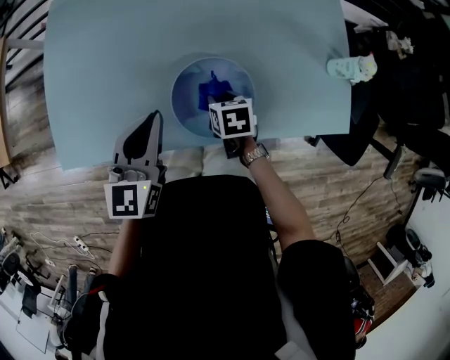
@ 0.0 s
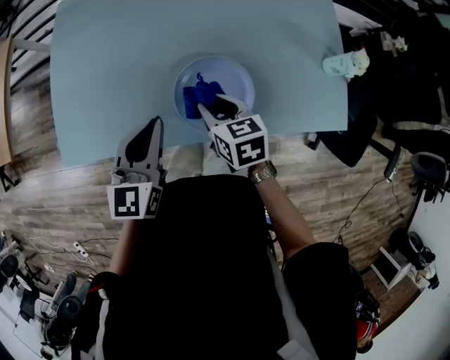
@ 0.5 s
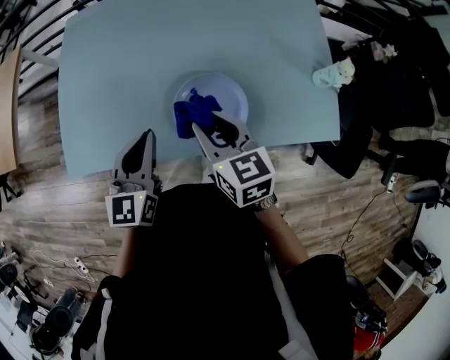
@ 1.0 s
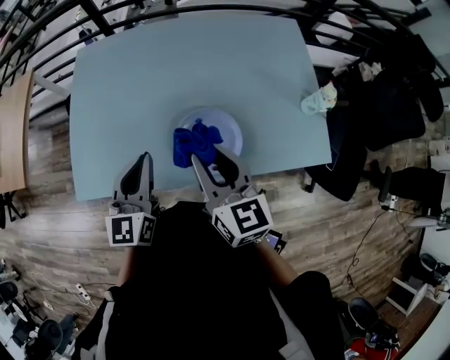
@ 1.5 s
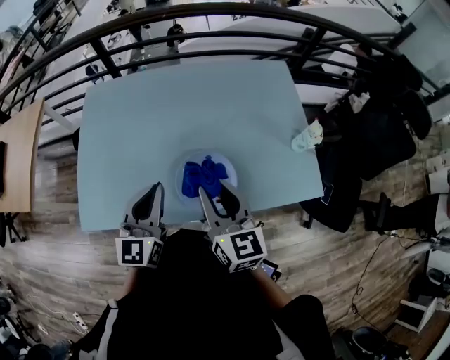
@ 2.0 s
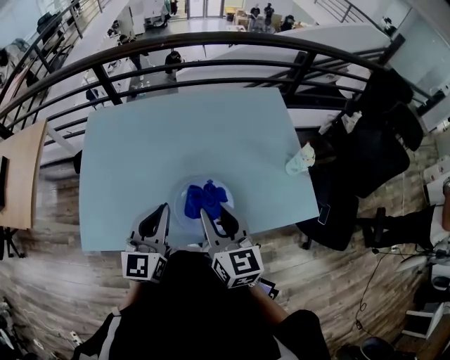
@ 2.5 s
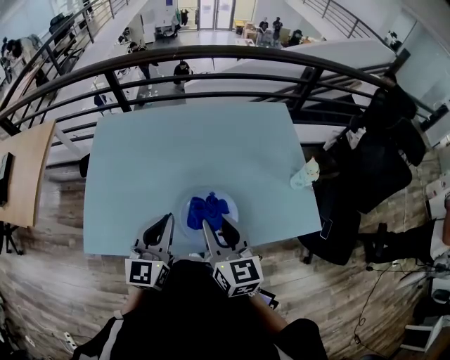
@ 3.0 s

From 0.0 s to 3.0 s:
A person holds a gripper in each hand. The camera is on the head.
From 0.0 s to 1.5 s: The left gripper heads upward, covering approximately 10 cm, while the right gripper is displaced upward by roughly 30 cm, and angles its fingers upward, by roughly 50 degrees.
From 1.5 s to 3.0 s: The left gripper moves roughly 5 cm.

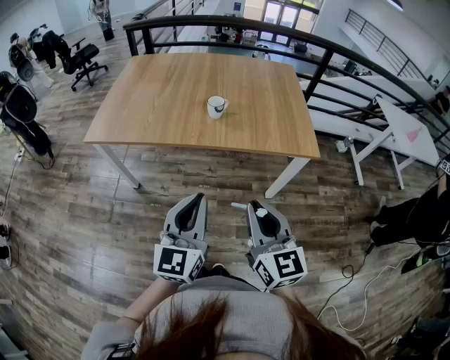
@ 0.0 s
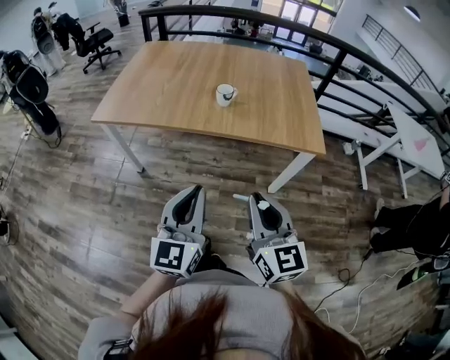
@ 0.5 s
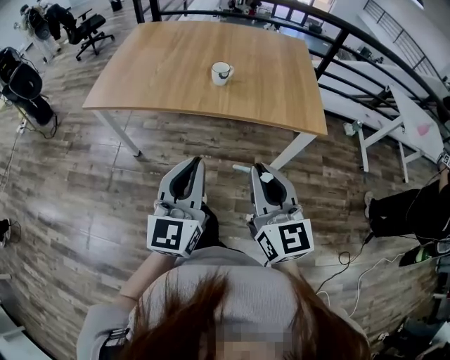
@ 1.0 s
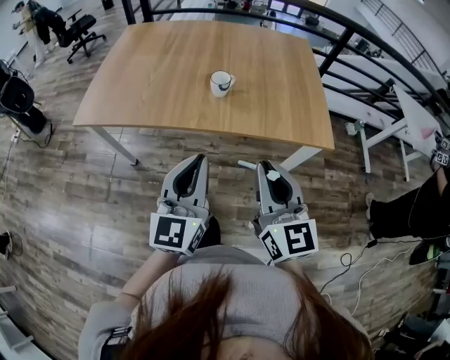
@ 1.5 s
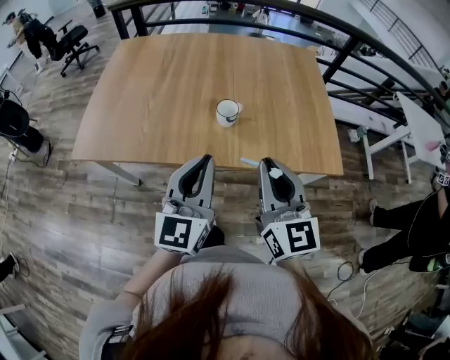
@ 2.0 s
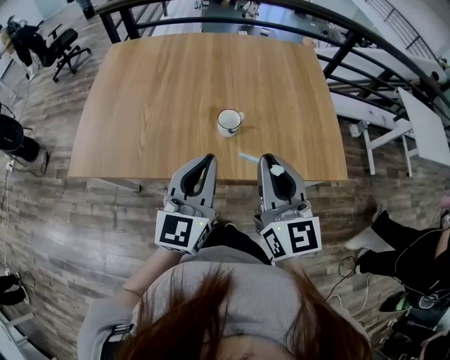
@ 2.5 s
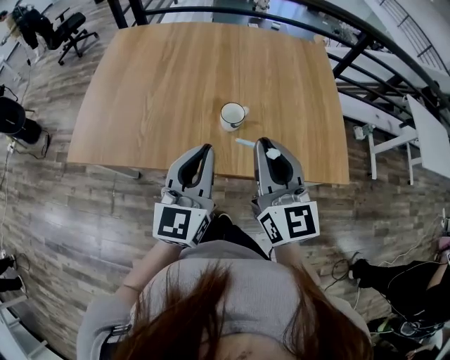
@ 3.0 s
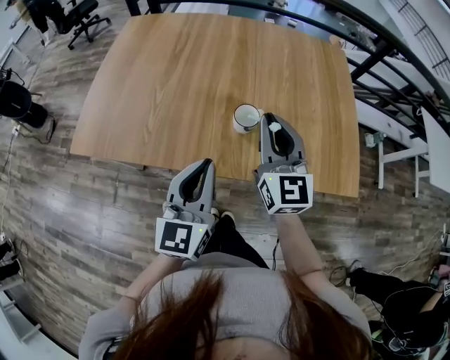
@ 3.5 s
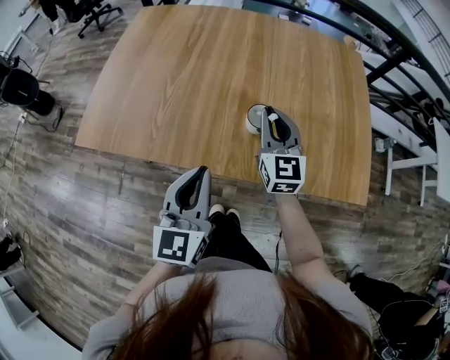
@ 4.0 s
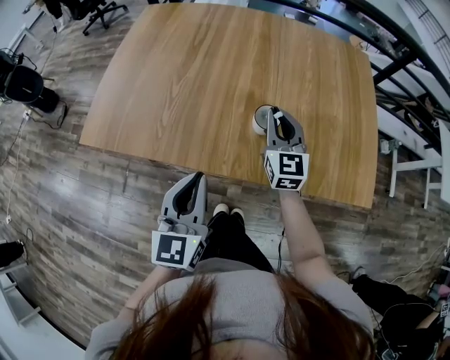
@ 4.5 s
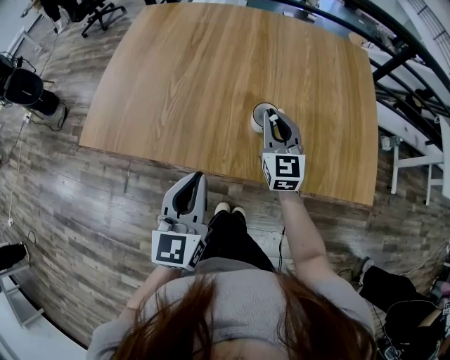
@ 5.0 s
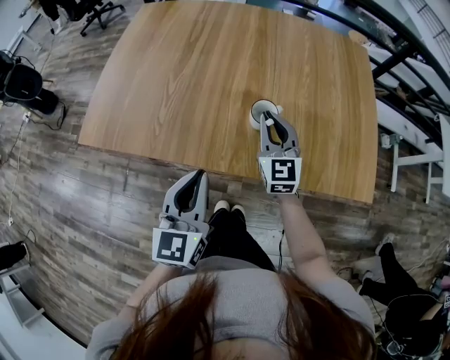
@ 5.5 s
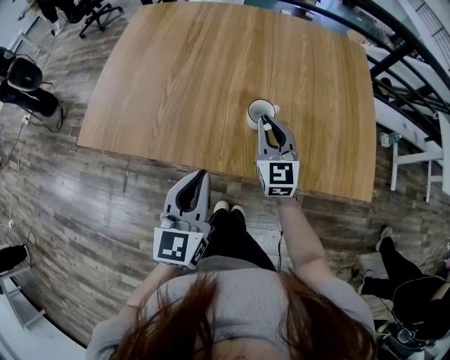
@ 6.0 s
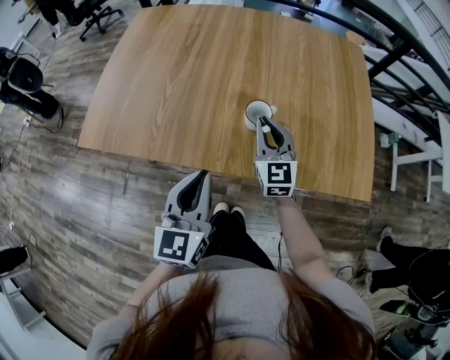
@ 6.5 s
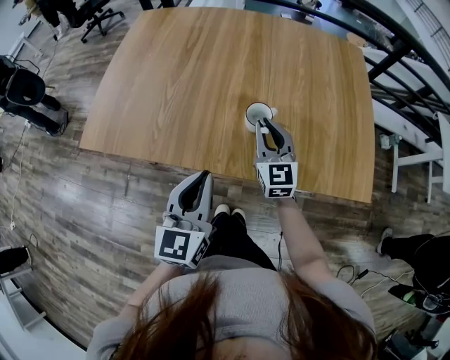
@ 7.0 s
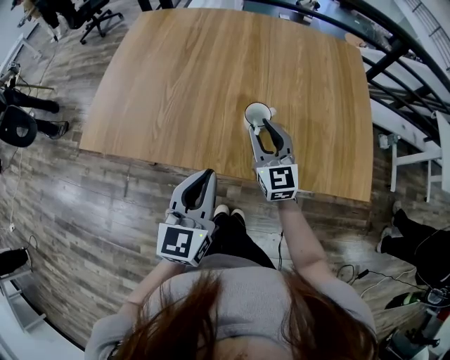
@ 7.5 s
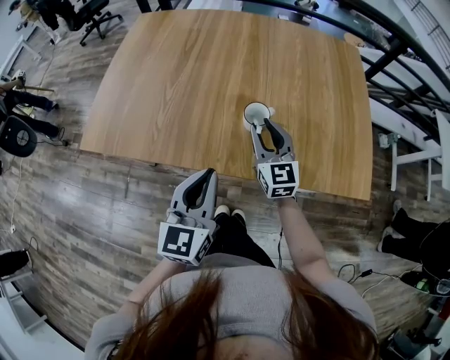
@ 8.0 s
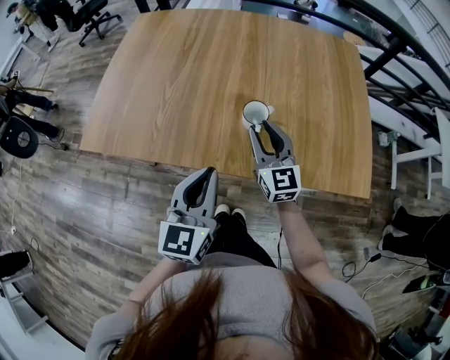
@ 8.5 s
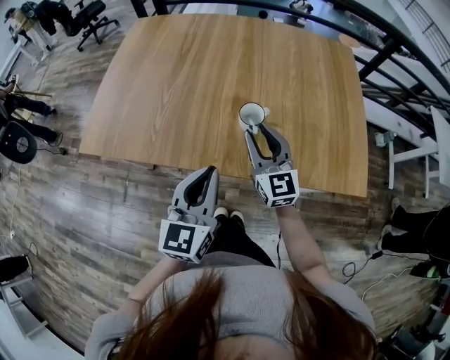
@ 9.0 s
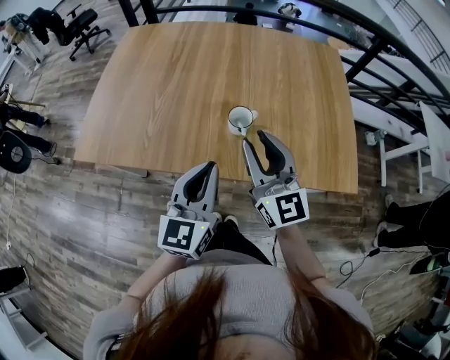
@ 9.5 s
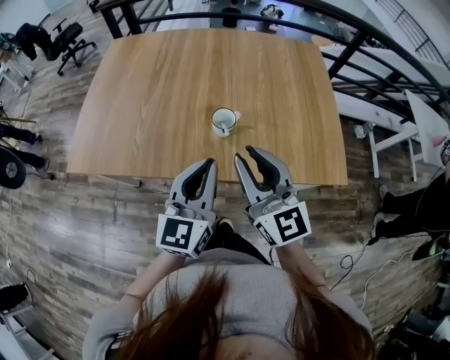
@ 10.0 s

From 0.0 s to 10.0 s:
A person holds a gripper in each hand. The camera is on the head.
From 0.0 s to 2.0 s: The grippers both shift forward by approximately 25 cm.
From 2.0 s to 4.0 s: The right gripper goes roughly 30 cm forward and downward. The left gripper is displaced forward, downward and to the left by about 10 cm.
From 4.0 s to 6.0 s: The right gripper moves approximately 5 cm.
From 6.0 s to 8.0 s: The grippers make only small movements.
From 8.0 s to 10.0 s: The right gripper heads upward and backward, covering roughly 20 cm. The left gripper shifts about 10 cm to the right and upward.

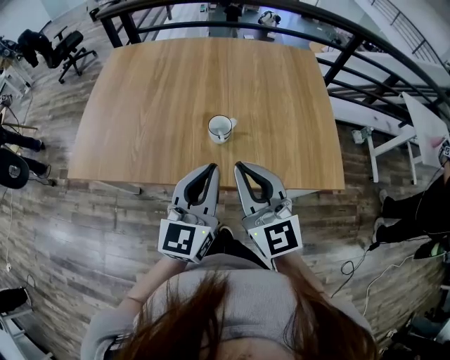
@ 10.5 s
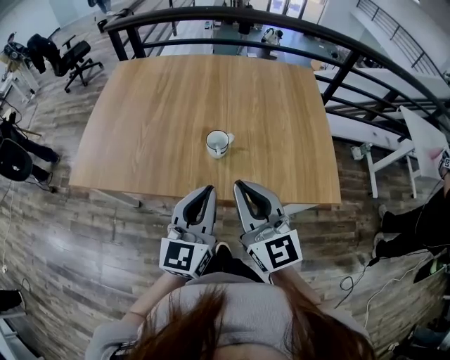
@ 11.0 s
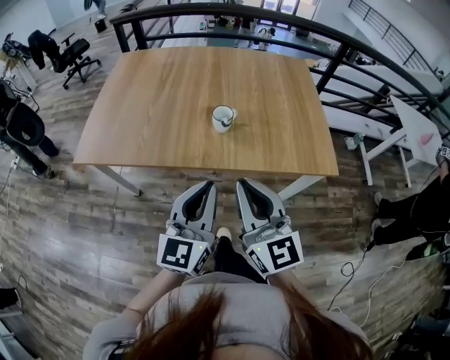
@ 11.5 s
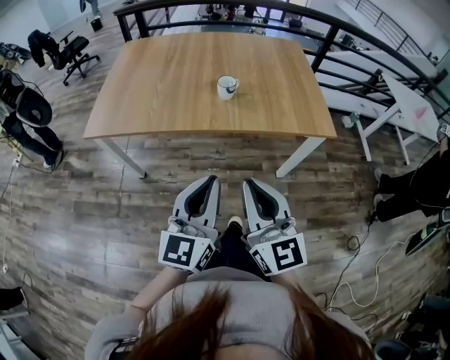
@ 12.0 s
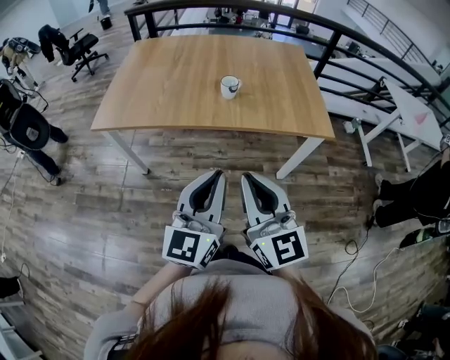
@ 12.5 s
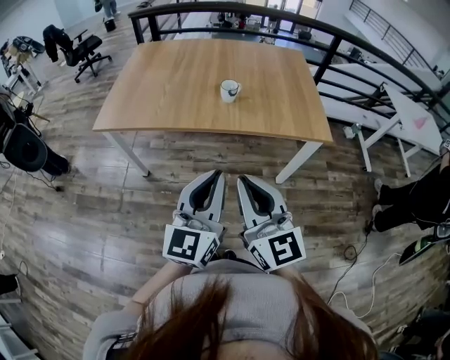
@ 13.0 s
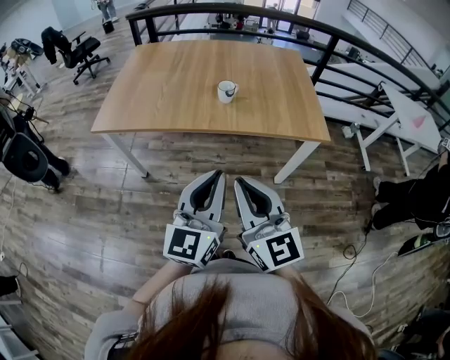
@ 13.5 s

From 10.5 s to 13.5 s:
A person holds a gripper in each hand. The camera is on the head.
From 10.5 s to 12.0 s: Both grippers move backward, approximately 30 cm.
From 12.0 s to 13.5 s: The left gripper changes place by some 5 cm.

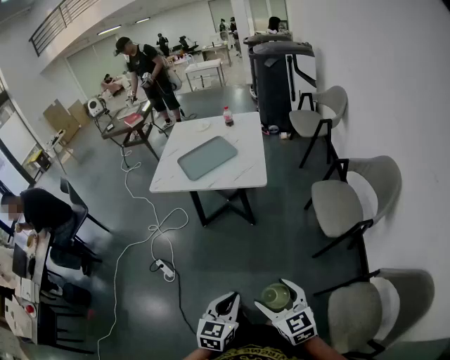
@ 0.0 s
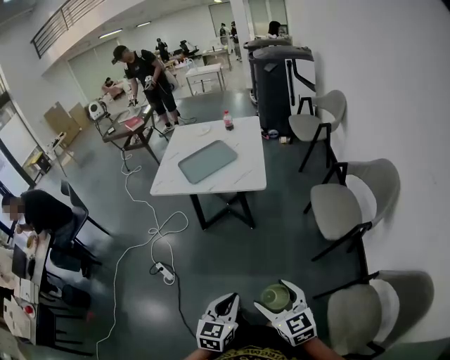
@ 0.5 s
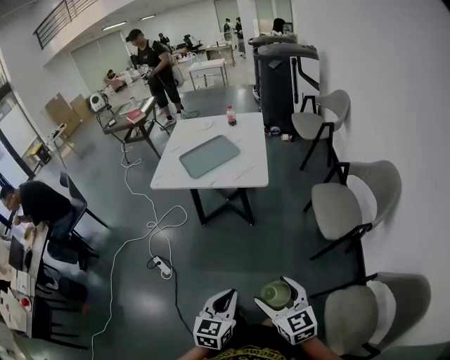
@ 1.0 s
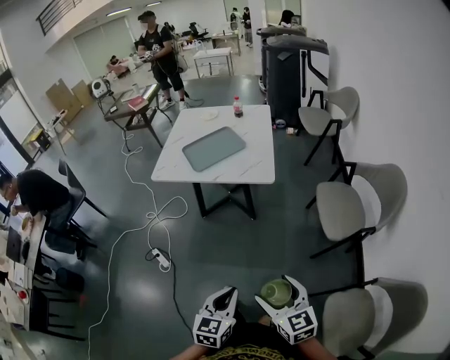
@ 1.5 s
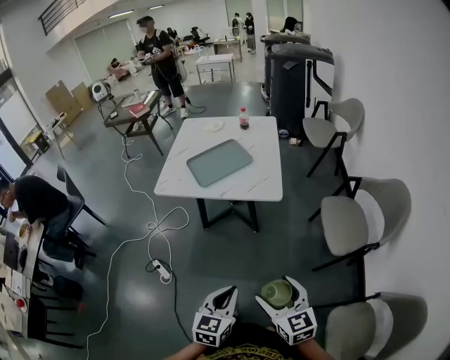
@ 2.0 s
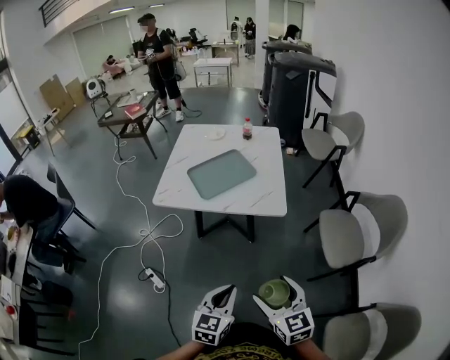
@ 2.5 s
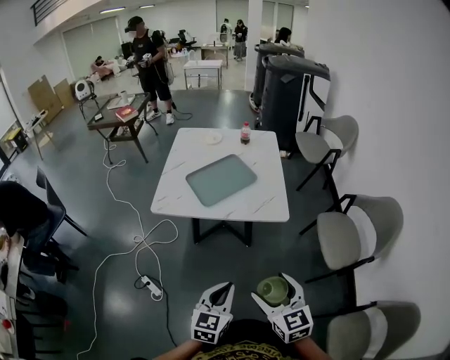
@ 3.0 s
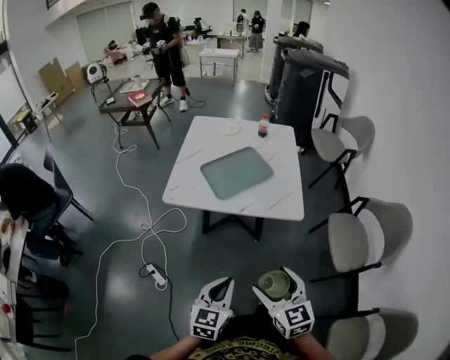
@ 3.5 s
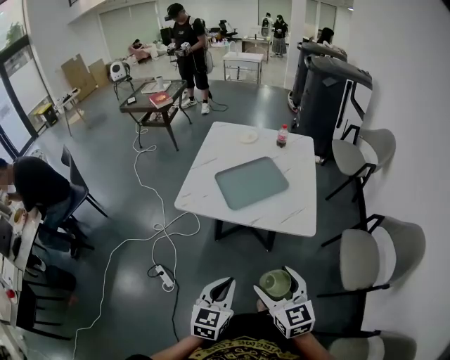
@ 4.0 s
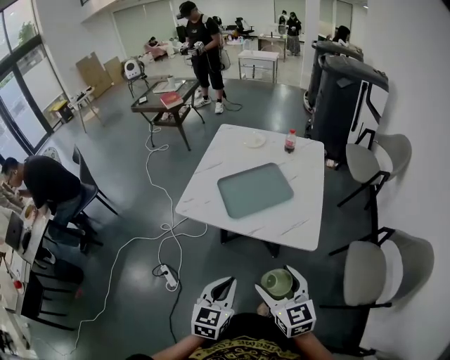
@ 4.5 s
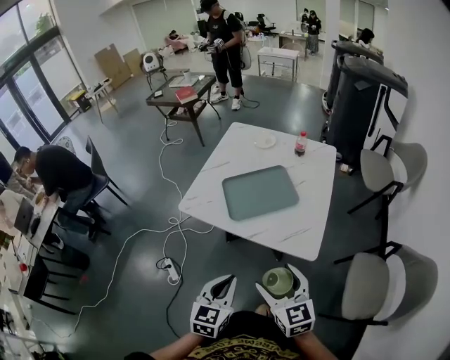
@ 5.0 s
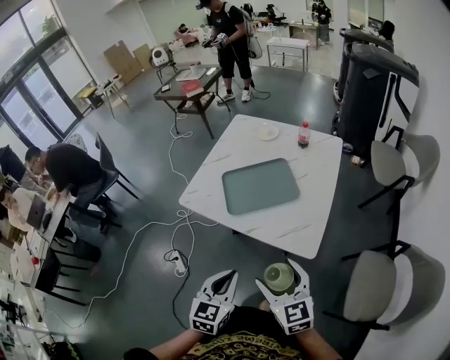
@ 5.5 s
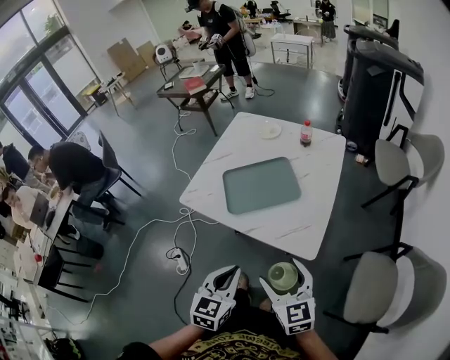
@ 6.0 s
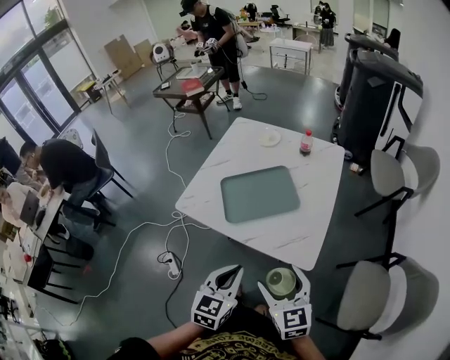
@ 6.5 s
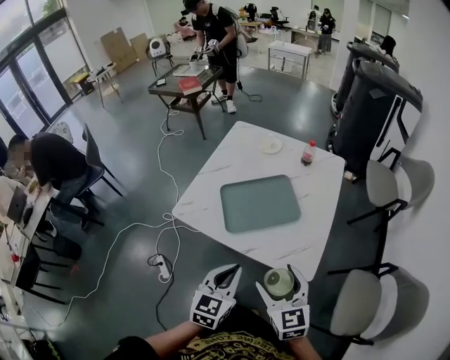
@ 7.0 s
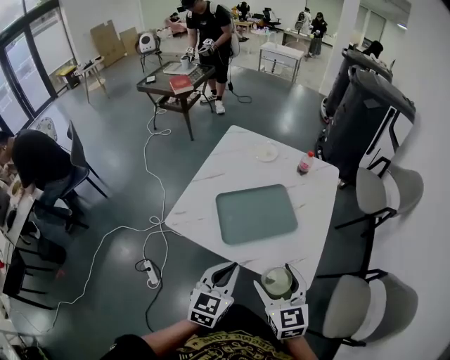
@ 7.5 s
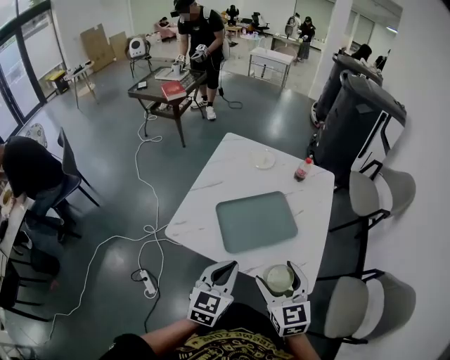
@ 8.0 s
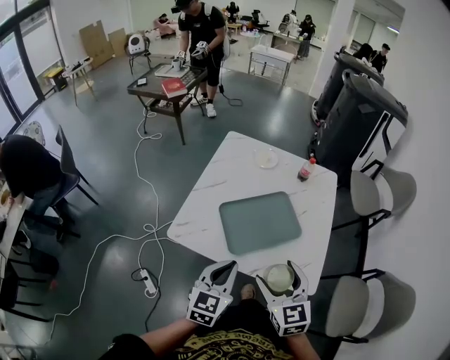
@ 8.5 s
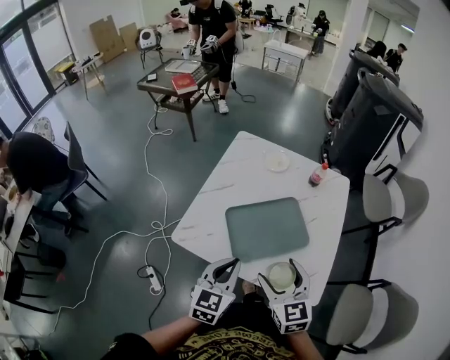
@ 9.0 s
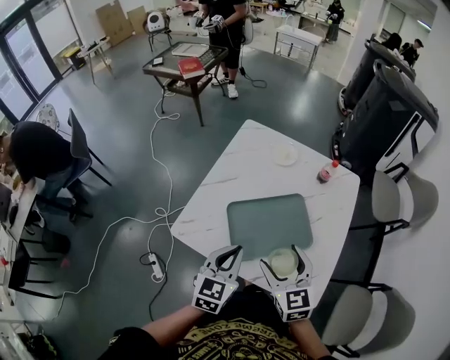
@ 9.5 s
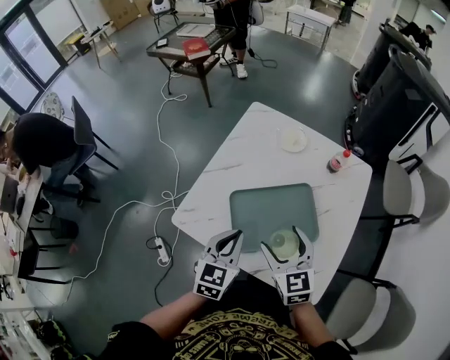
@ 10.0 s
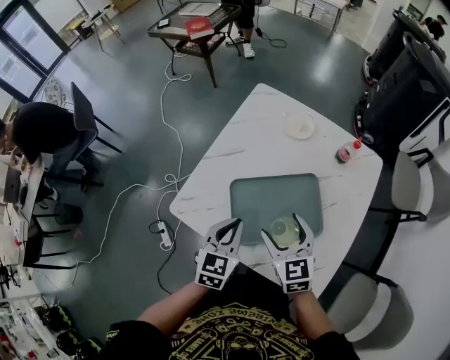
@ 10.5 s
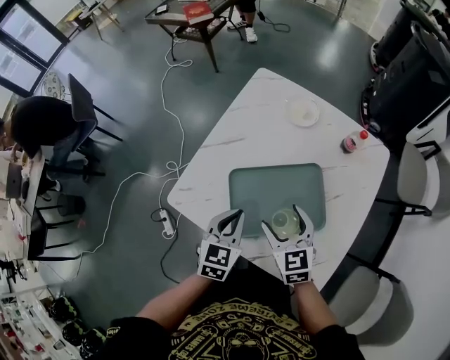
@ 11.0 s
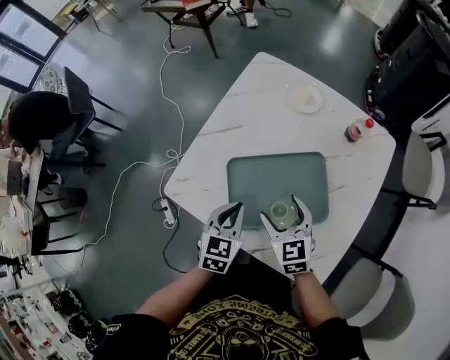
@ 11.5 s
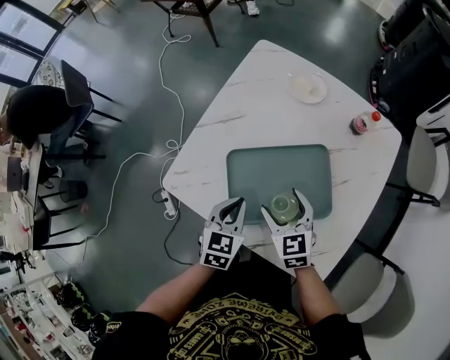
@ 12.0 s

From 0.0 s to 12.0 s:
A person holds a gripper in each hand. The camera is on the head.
From 0.0 s to 2.0 s: The two grippers go about 10 cm forward.
From 2.0 s to 4.0 s: The grippers both shift forward and to the left by roughly 25 cm.
From 4.0 s to 6.0 s: The two grippers go about 15 cm to the right and forward.
From 6.0 s to 8.0 s: Both grippers move forward and to the left, some 20 cm.
From 8.0 s to 10.0 s: The two grippers go some 15 cm forward.
From 10.0 s to 12.0 s: The grippers both shift downward by some 10 cm.
